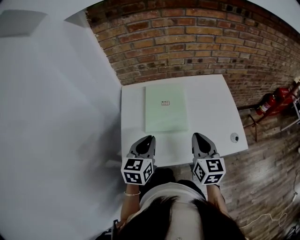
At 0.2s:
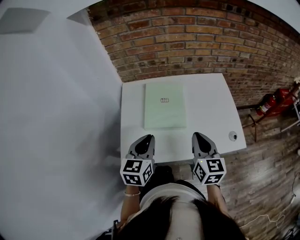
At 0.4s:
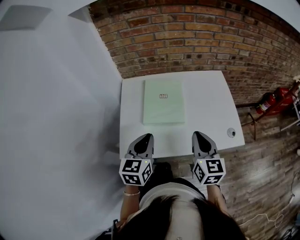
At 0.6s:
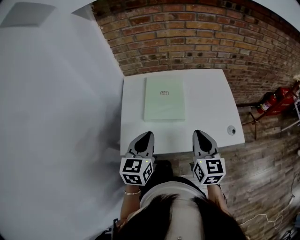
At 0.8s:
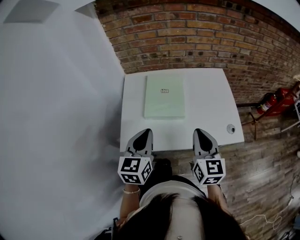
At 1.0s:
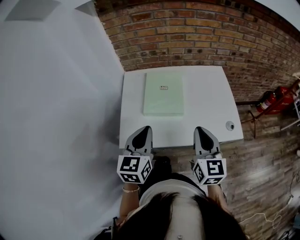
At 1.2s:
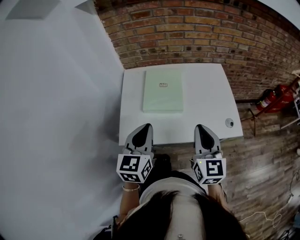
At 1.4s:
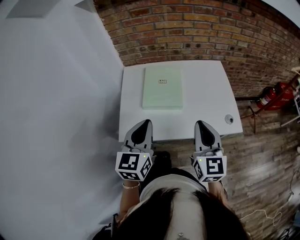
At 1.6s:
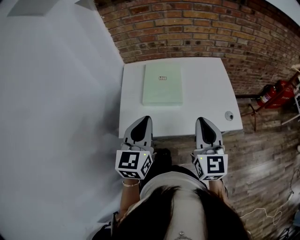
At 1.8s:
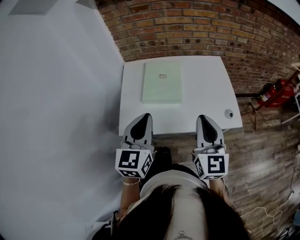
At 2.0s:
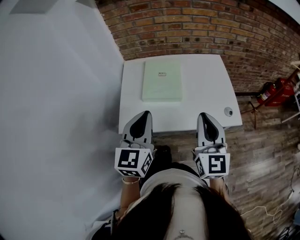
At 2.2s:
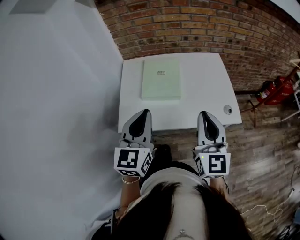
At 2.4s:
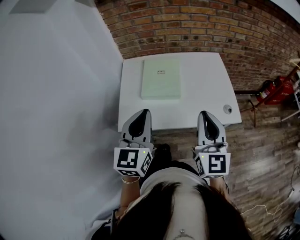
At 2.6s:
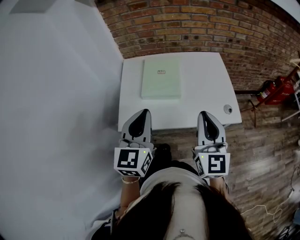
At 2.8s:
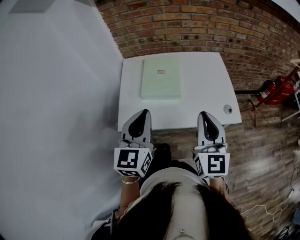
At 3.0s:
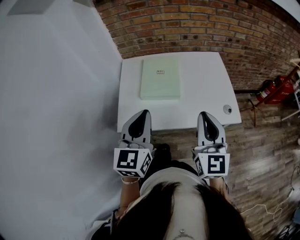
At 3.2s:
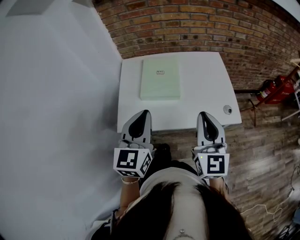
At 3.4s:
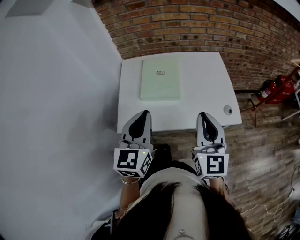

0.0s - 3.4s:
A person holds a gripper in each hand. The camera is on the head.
0.0s - 1.6s: Both grippers move backward and upward, about 15 cm.
1.6s - 3.4s: The grippers stay close to where they were, moving slightly.

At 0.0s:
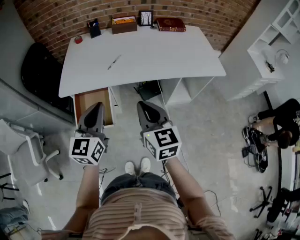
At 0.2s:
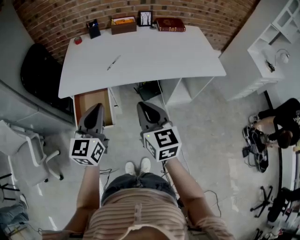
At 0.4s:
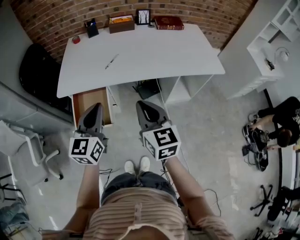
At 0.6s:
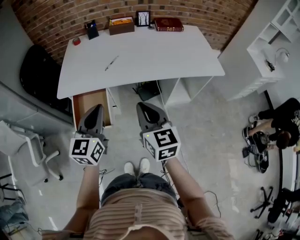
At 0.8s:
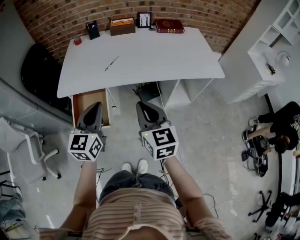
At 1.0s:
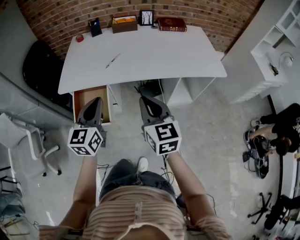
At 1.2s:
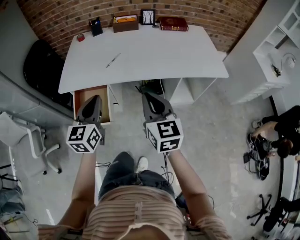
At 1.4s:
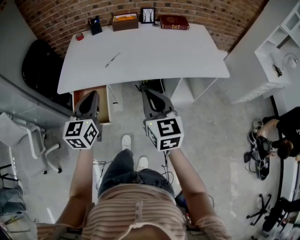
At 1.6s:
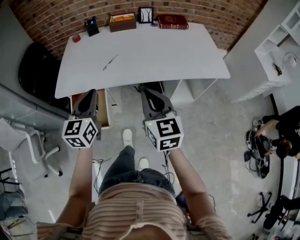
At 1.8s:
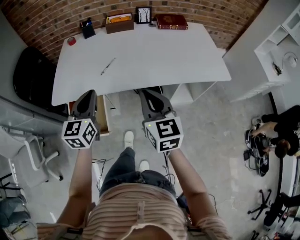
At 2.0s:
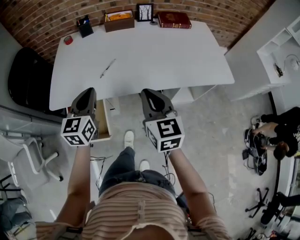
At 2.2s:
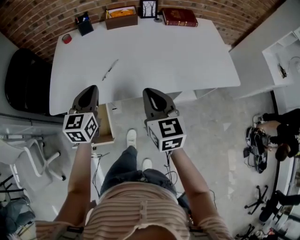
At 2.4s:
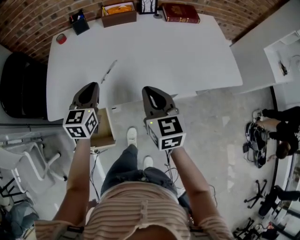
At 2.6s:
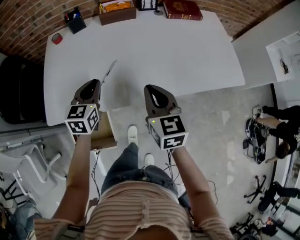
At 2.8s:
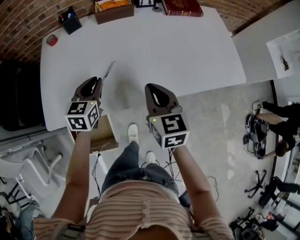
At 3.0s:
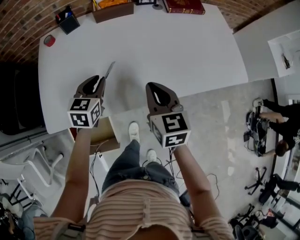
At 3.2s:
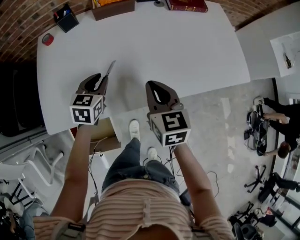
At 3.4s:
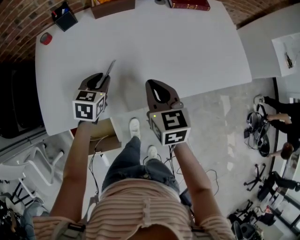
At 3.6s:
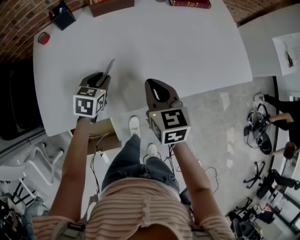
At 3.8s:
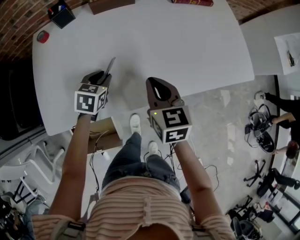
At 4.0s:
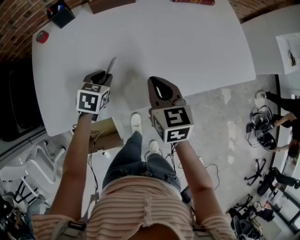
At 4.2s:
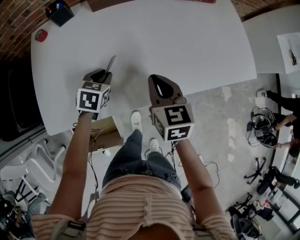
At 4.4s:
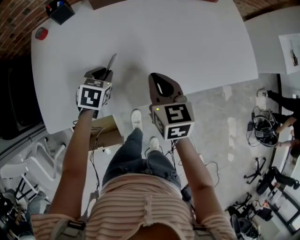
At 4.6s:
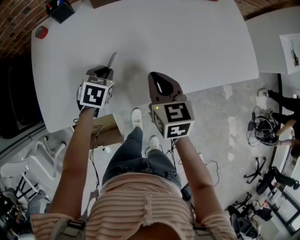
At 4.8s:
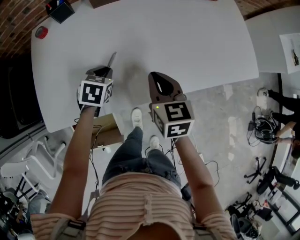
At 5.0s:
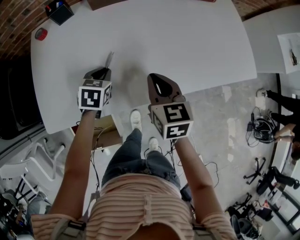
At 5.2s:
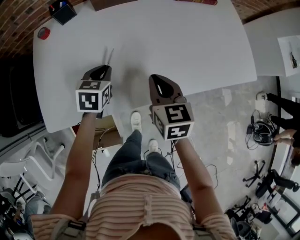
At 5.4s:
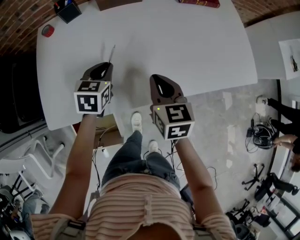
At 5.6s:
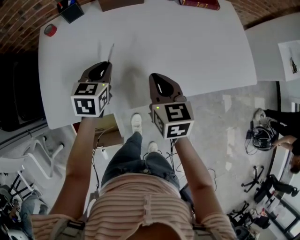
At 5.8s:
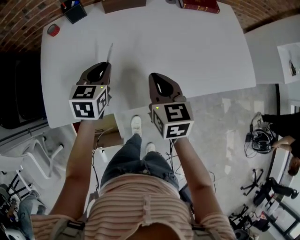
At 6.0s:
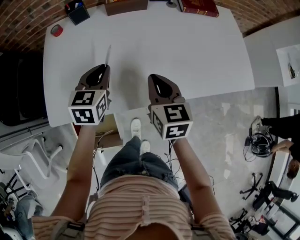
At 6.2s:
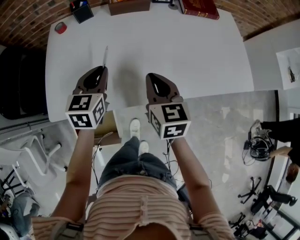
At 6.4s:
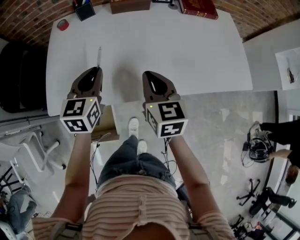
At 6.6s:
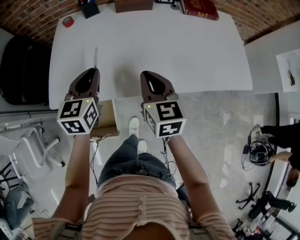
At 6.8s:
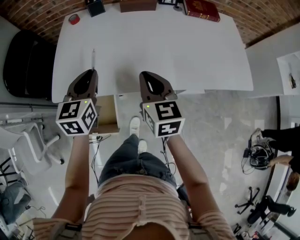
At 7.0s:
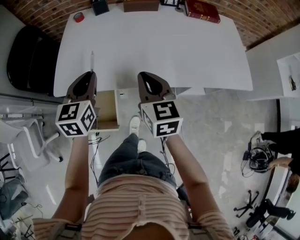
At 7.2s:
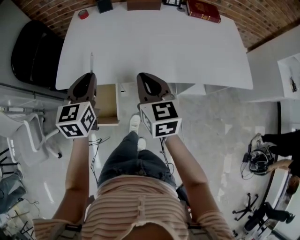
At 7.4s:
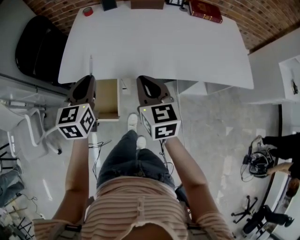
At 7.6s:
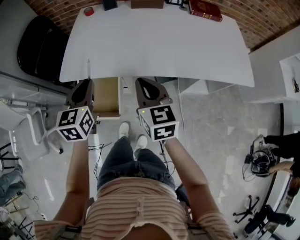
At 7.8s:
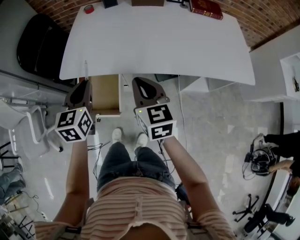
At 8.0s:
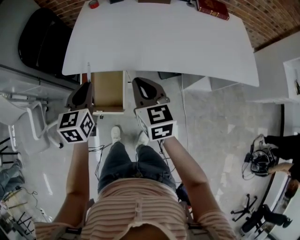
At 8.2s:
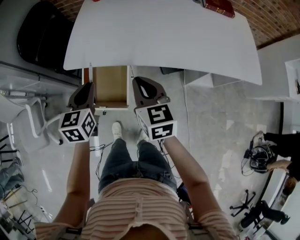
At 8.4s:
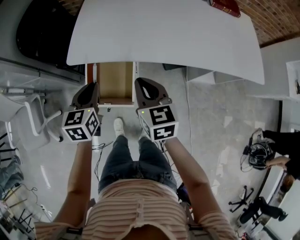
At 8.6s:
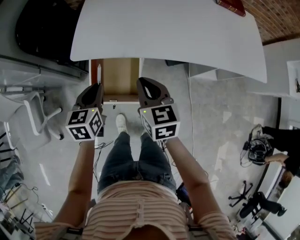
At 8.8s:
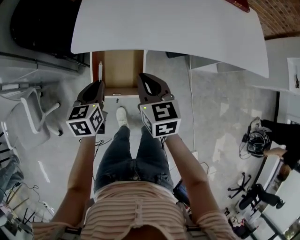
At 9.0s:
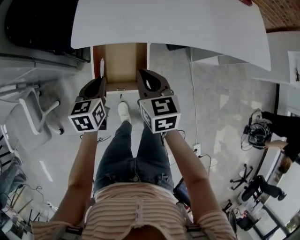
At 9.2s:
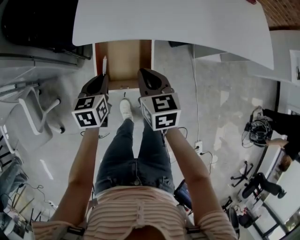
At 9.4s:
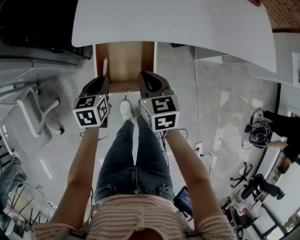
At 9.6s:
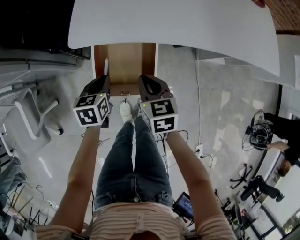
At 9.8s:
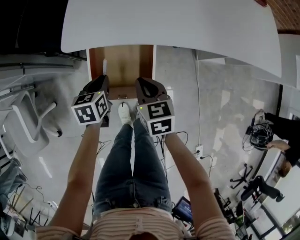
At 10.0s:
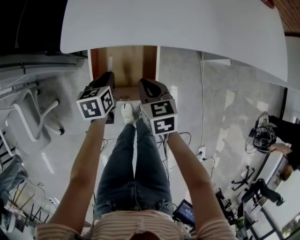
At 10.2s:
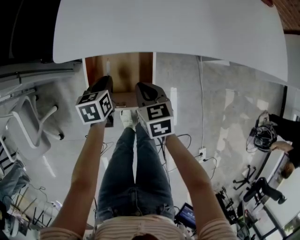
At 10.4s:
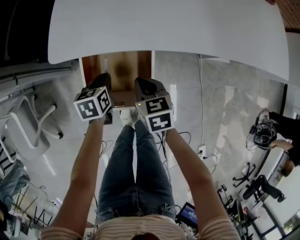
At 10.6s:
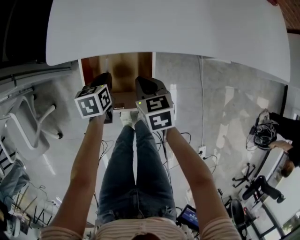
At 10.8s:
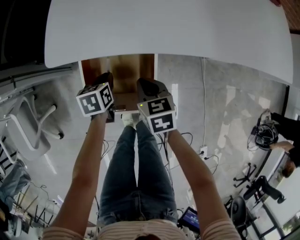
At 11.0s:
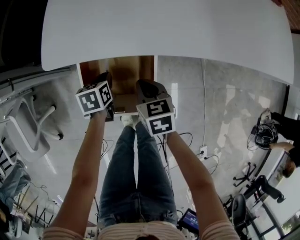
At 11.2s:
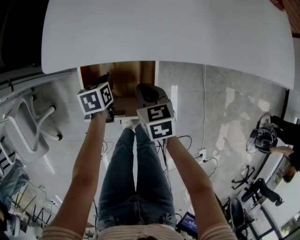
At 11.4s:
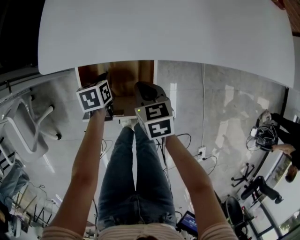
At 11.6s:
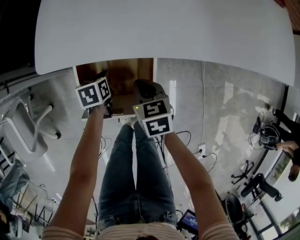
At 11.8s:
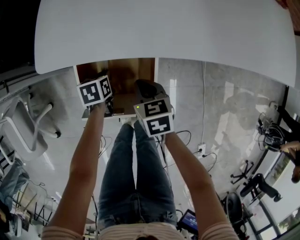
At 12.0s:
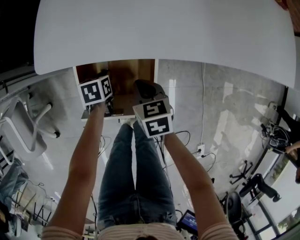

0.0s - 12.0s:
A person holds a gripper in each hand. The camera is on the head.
0.0s - 1.6s: The right gripper travels forward and to the right by some 10 cm; the left gripper goes about 10 cm forward.
1.6s - 3.0s: The left gripper goes approximately 35 cm forward and downward, and swivels about 30 degrees. The right gripper shifts approximately 25 cm forward.
3.0s - 4.4s: The left gripper shifts roughly 10 cm downward, and rotates some 20 degrees. Meanwhile the right gripper changes place by some 5 cm.
4.4s - 6.0s: The left gripper shifts roughly 15 cm upward, and rotates some 30 degrees.
6.0s - 7.6s: The grippers both shift backward by approximately 20 cm. The left gripper swivels some 20 degrees.
7.6s - 9.0s: The left gripper goes some 25 cm downward and to the left, and swivels about 20 degrees, while the right gripper is displaced to the left and downward by approximately 25 cm.
9.0s - 10.4s: The right gripper moves downward, approximately 20 cm. The left gripper goes some 20 cm downward and forward.
10.4s - 12.0s: The left gripper moves downward, approximately 10 cm.

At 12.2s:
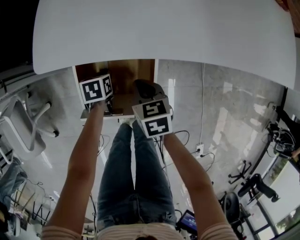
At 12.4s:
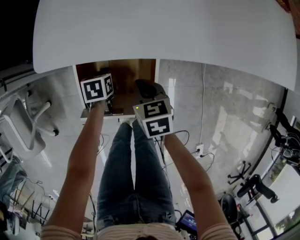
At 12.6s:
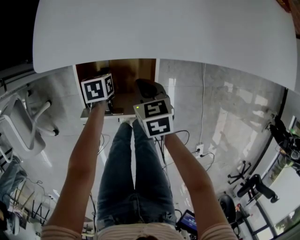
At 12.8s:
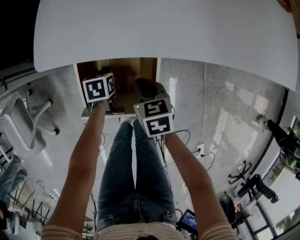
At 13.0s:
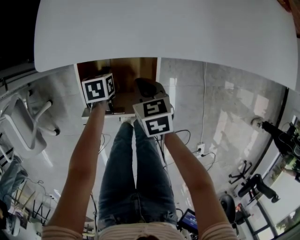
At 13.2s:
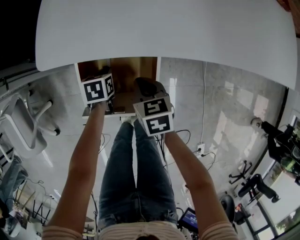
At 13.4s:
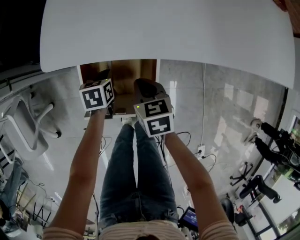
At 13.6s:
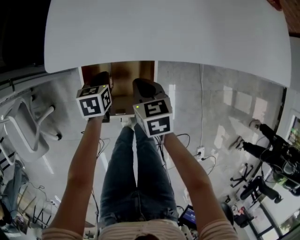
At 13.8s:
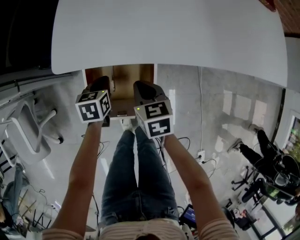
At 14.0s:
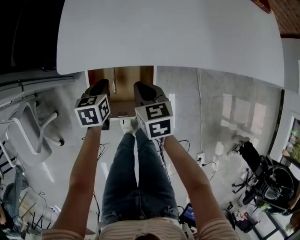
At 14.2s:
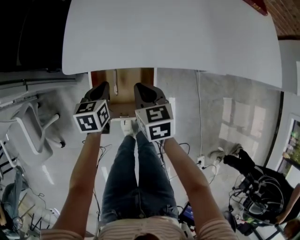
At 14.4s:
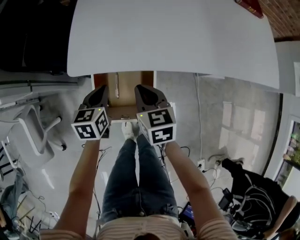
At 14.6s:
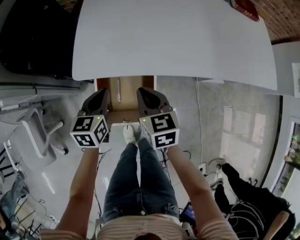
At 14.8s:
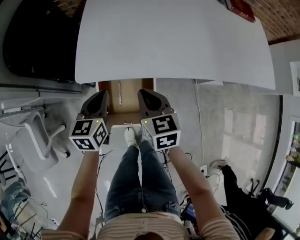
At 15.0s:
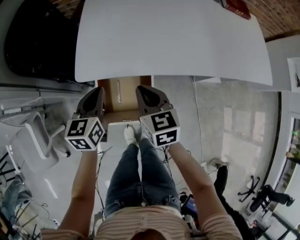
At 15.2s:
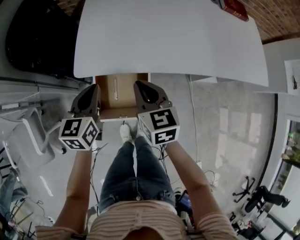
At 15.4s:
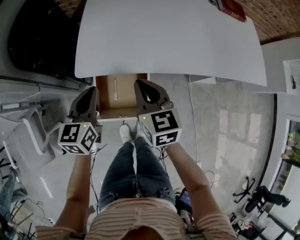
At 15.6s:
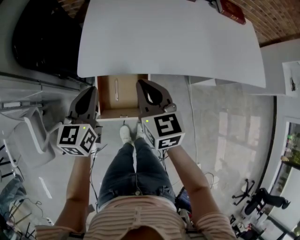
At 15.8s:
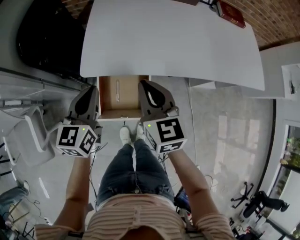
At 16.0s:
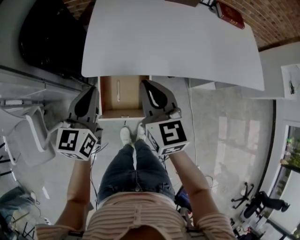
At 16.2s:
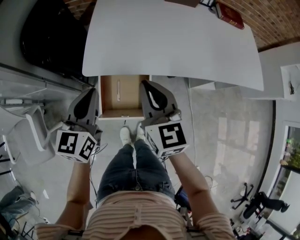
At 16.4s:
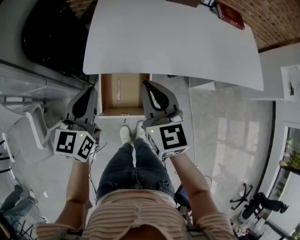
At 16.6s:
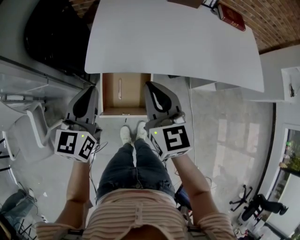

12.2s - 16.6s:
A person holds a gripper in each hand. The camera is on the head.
12.2s - 13.6s: The left gripper travels upward by roughly 10 cm.
13.6s - 15.2s: The two grippers go some 25 cm upward. The left gripper tilts its fingers roughly 30 degrees upward. The right gripper swivels some 20 degrees.
15.2s - 16.6s: The grippers both shift upward by approximately 10 cm.

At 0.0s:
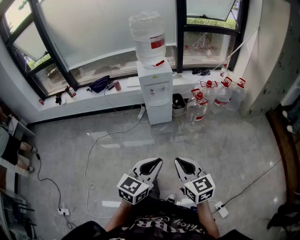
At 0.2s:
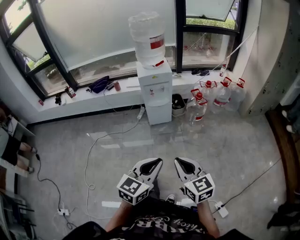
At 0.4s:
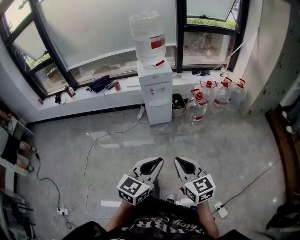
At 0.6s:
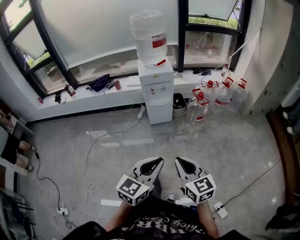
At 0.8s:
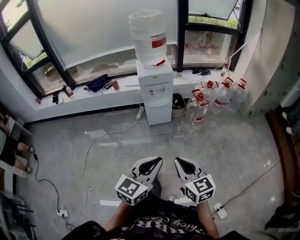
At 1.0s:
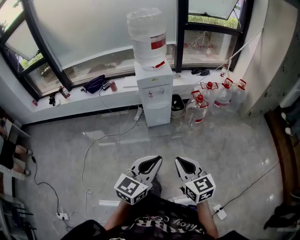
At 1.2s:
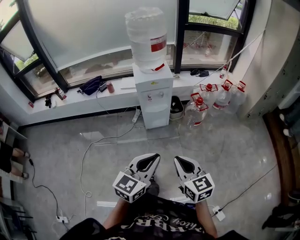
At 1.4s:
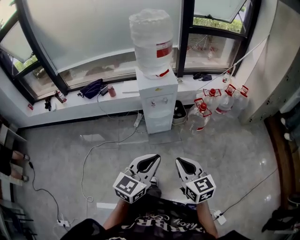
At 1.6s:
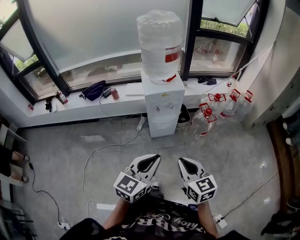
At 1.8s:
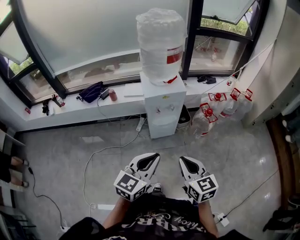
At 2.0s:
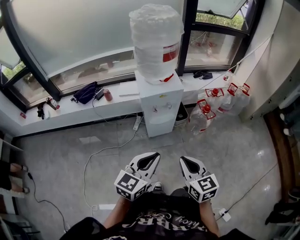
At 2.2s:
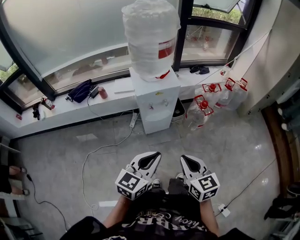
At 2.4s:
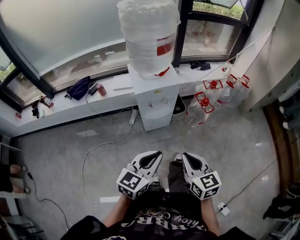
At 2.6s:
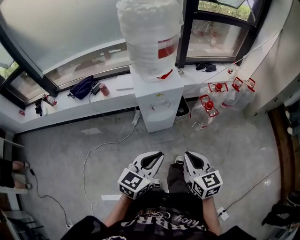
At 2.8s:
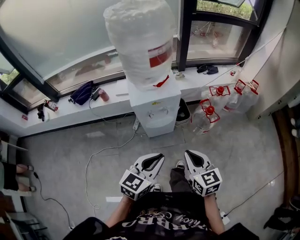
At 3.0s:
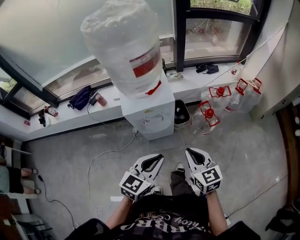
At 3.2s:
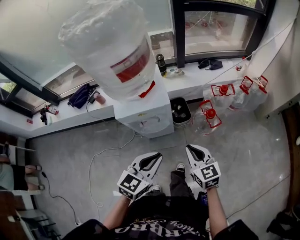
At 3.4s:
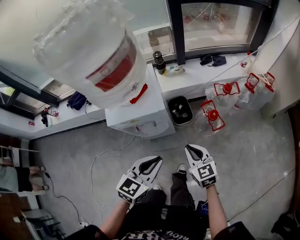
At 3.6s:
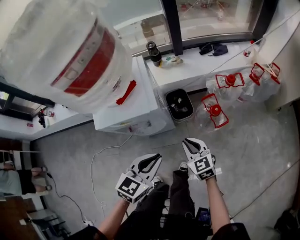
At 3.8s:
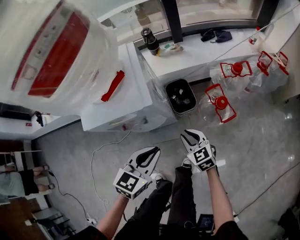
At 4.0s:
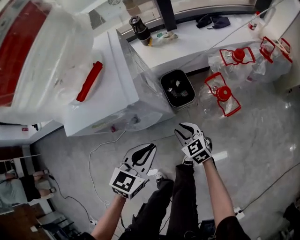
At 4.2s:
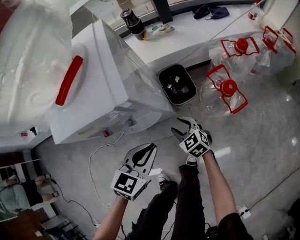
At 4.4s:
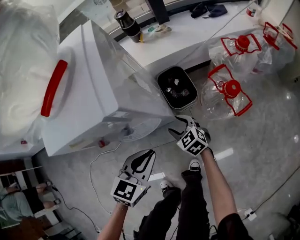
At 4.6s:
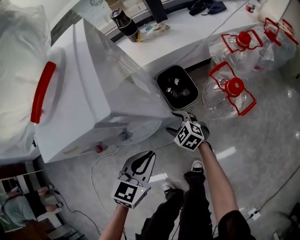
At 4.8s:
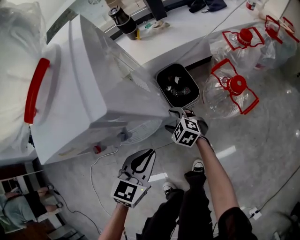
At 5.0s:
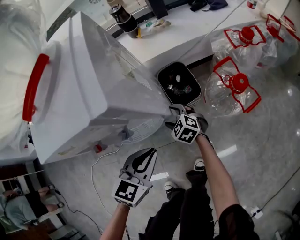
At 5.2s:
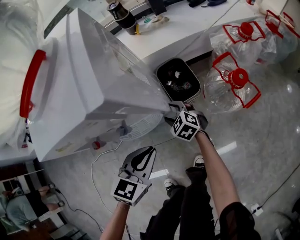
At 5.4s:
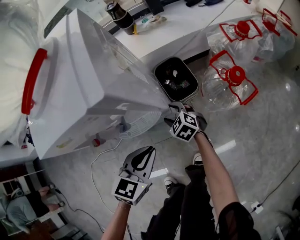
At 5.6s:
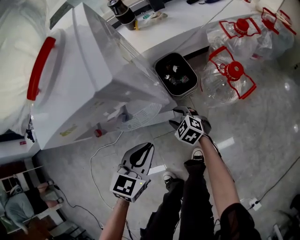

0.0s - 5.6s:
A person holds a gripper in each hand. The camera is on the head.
0.0s - 1.4s: The two grippers go some 20 cm forward.
1.4s - 2.8s: Both grippers move forward, some 25 cm.
2.8s - 4.2s: Both grippers travel together downward and forward, roughly 50 cm. The right gripper changes its angle by roughly 20 degrees, and opens up.
4.2s - 5.6s: The left gripper shifts some 5 cm downward. Meanwhile the right gripper is displaced downward by about 10 cm.
